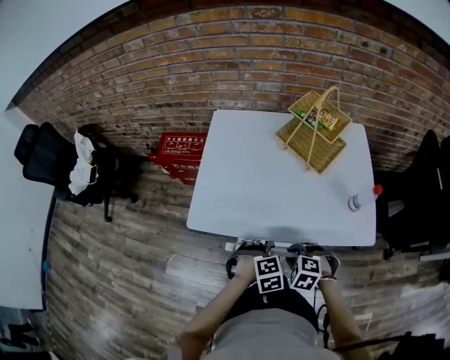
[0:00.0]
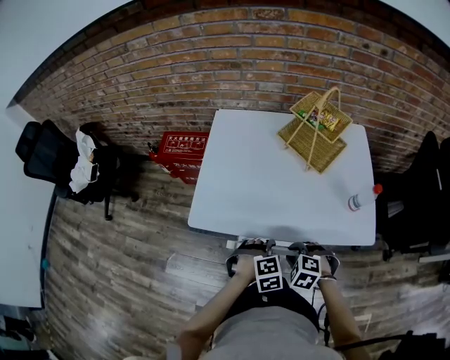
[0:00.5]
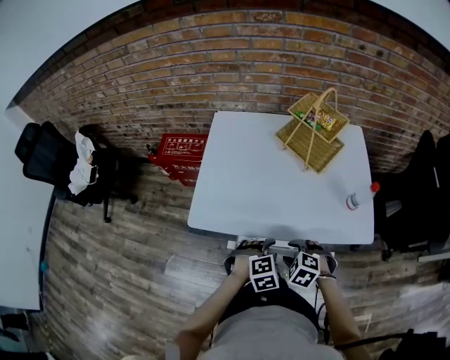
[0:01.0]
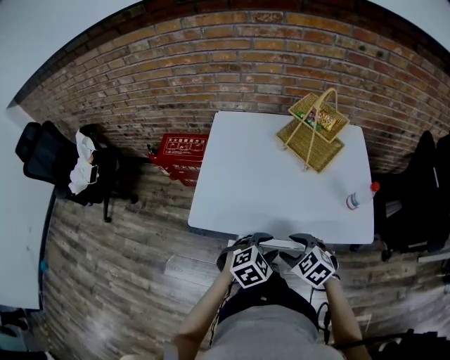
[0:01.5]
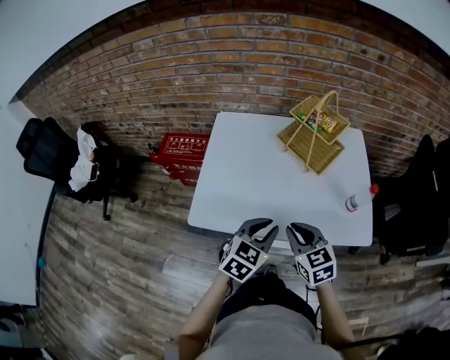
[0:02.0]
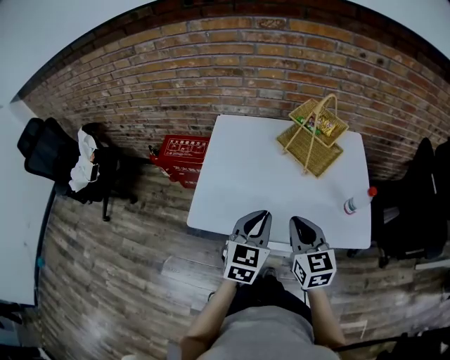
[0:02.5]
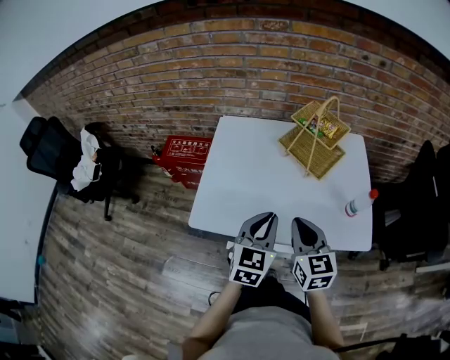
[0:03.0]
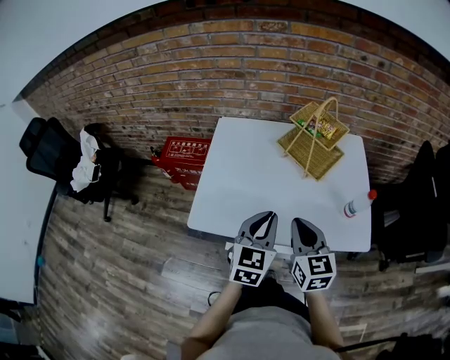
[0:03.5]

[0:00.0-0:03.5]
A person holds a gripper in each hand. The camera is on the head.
0:00.0 to 0:02.0: The two grippers go approximately 15 cm upward and forward. The right gripper tips its fingers upward by some 40 degrees, and opens and closes again; the left gripper tips its fingers upward by about 40 degrees.
0:02.0 to 0:03.5: The grippers both shift upward by about 5 cm. The left gripper rotates some 20 degrees.

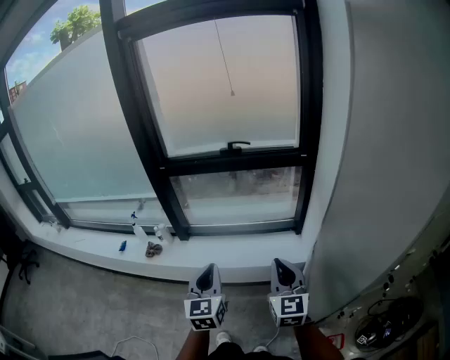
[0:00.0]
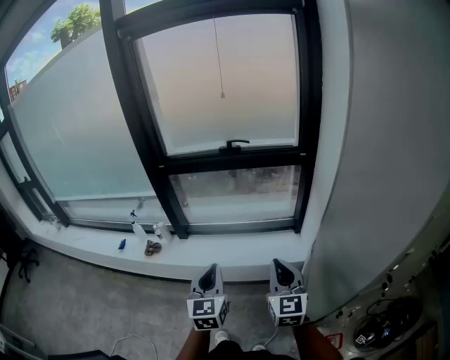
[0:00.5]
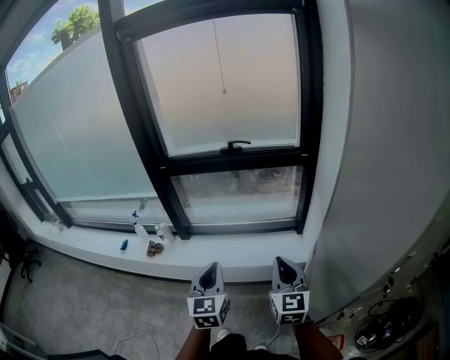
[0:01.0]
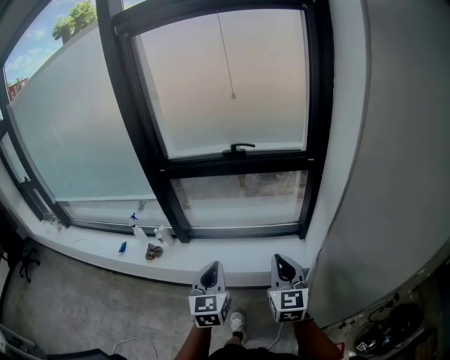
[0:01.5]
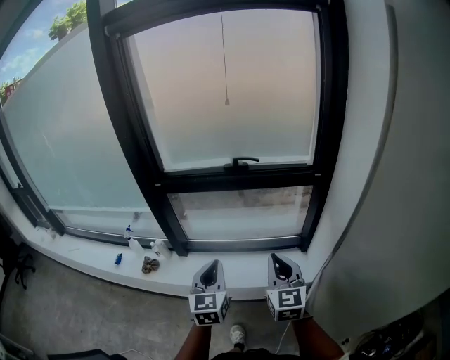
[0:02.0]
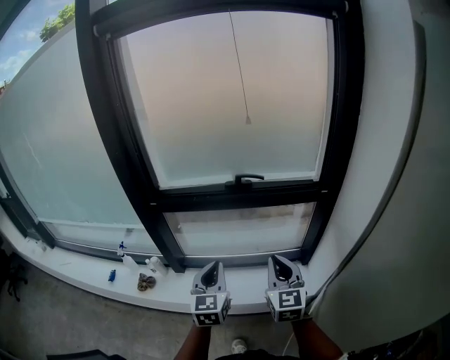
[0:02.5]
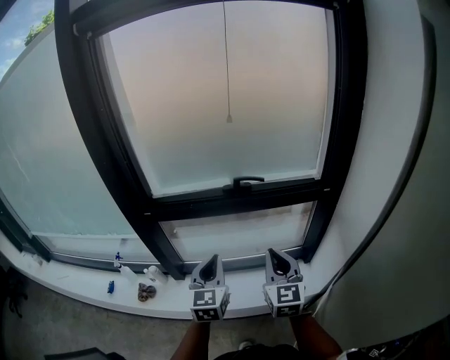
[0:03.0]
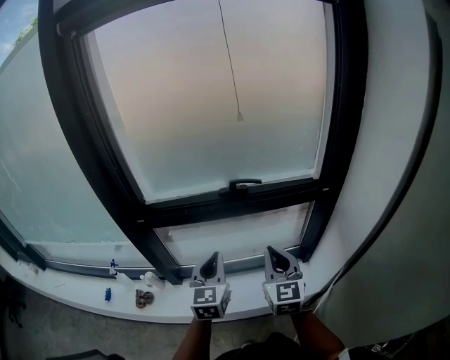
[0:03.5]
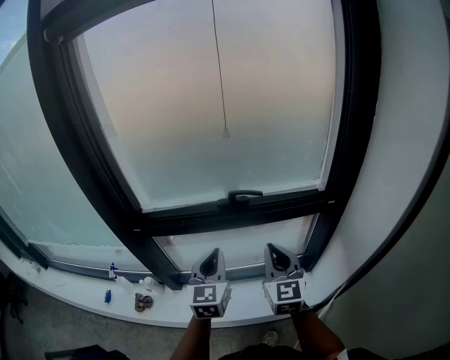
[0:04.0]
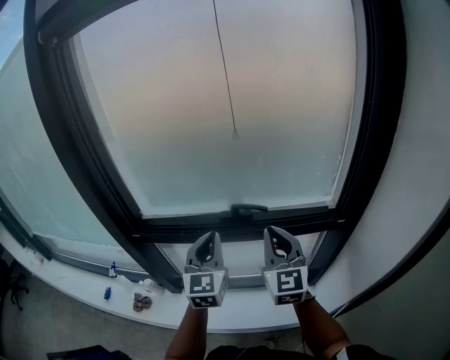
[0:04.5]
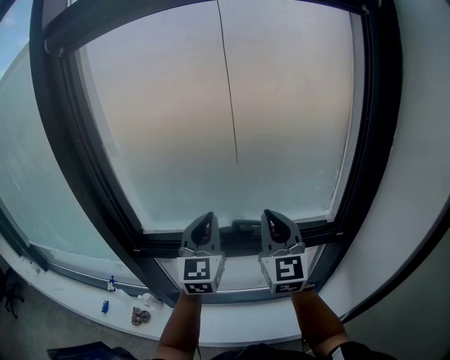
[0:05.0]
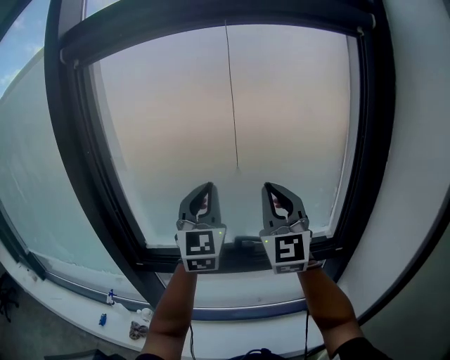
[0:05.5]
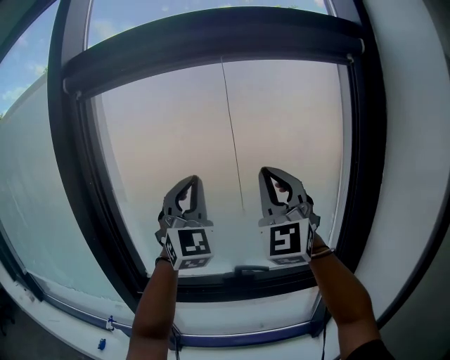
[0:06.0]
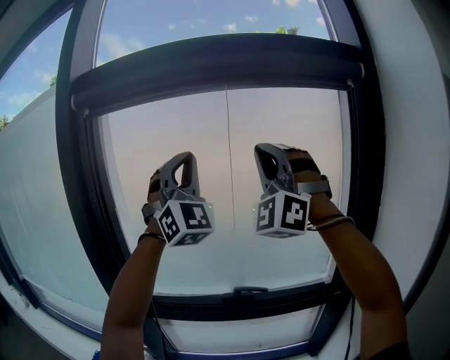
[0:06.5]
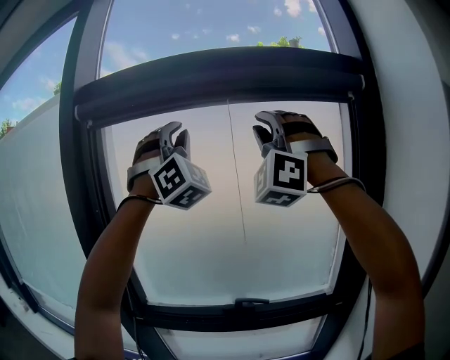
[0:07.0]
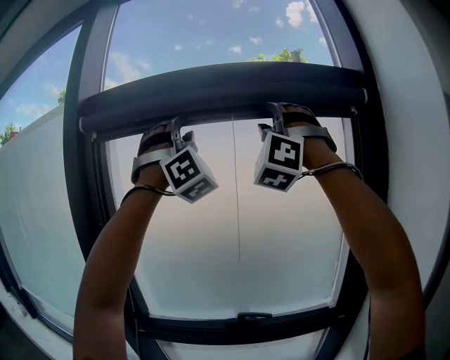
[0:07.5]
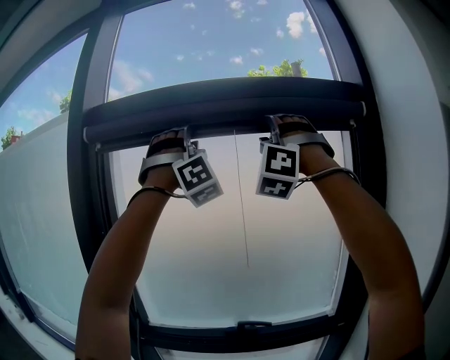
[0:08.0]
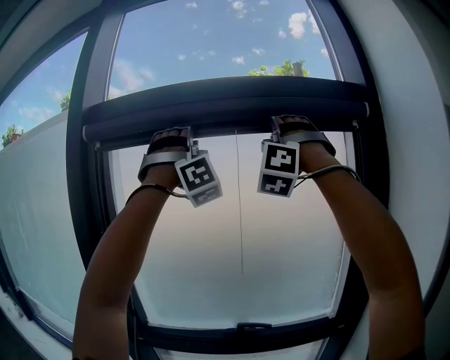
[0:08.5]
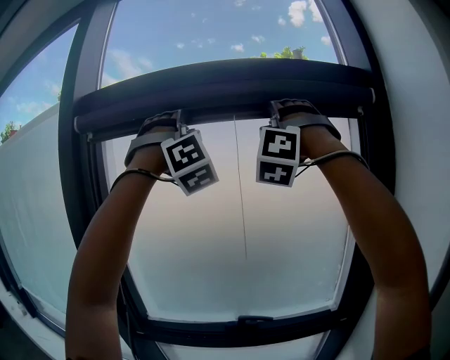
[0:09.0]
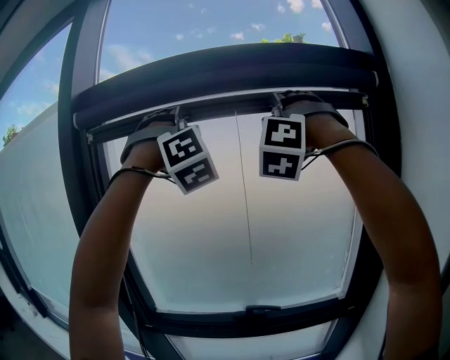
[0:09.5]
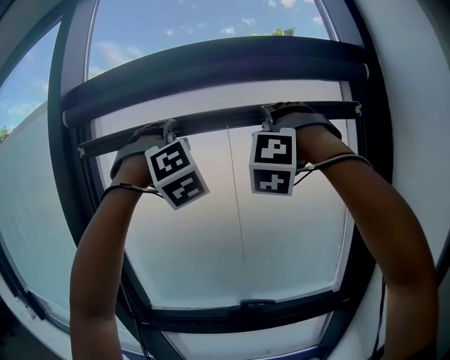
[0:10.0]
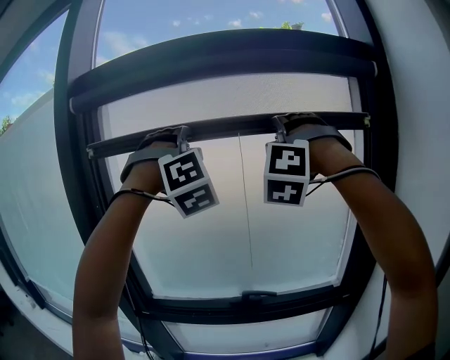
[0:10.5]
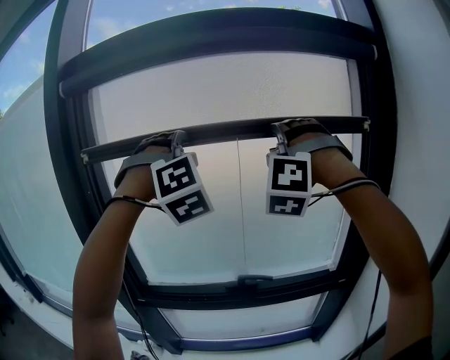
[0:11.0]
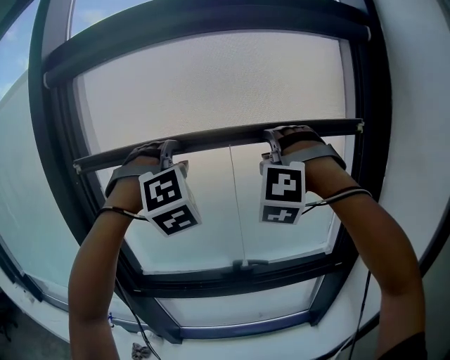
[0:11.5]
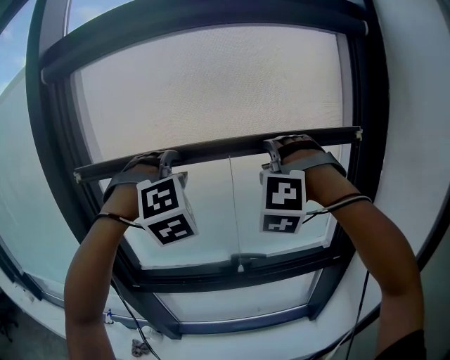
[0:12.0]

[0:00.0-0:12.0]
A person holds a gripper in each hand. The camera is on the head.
0:00.0 to 0:02.0: Both grippers move forward, approximately 15 cm.
0:02.0 to 0:04.0: Both grippers move forward, about 25 cm.
0:04.0 to 0:06.0: The grippers both shift upward by some 40 cm. The right gripper tilts its fingers roughly 30 degrees upward, while the left gripper angles its fingers upward, by about 40 degrees.
0:06.0 to 0:08.0: Both grippers travel together upward, roughly 25 cm. The right gripper twists some 60 degrees counterclockwise, seen from behind, and opens its fingers. The left gripper rolls clockwise, seen from behind, by some 50 degrees, and opens up.
0:08.0 to 0:10.0: Both grippers move downward, roughly 10 cm. The left gripper turns by some 20 degrees.
0:10.0 to 0:12.0: The grippers both shift downward by about 20 cm. The left gripper changes its angle by about 20 degrees.

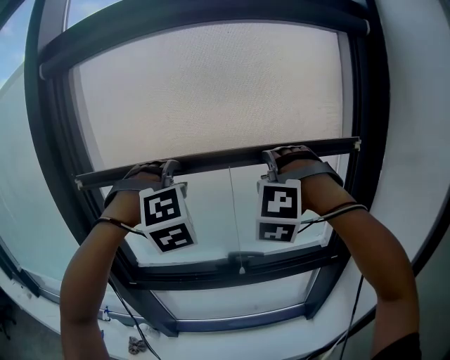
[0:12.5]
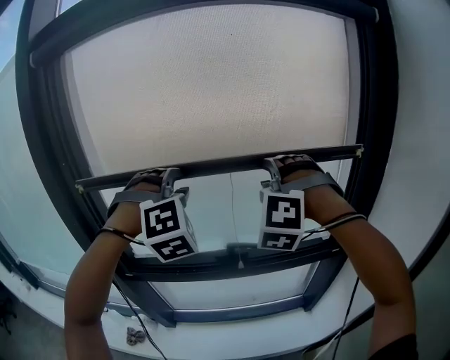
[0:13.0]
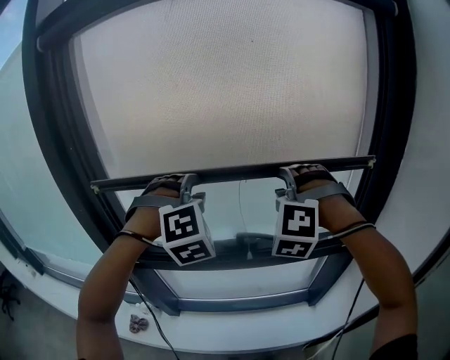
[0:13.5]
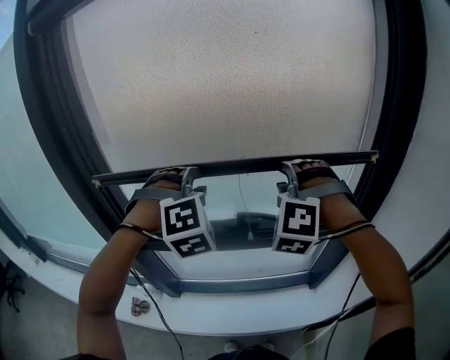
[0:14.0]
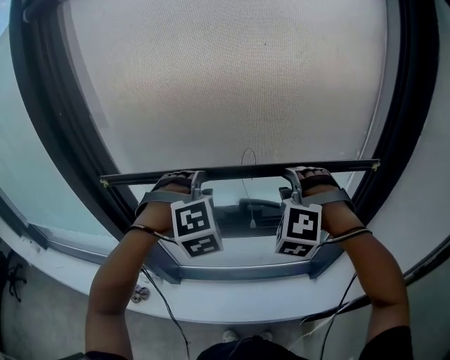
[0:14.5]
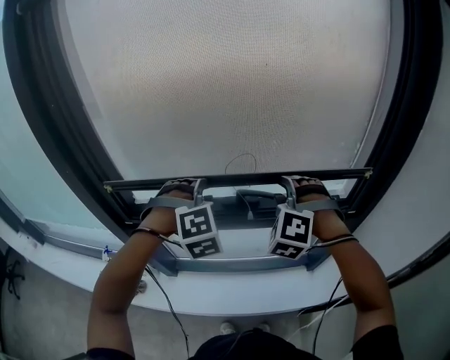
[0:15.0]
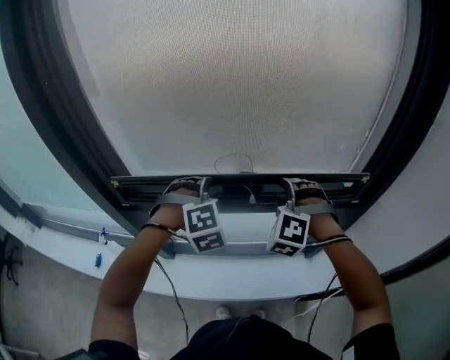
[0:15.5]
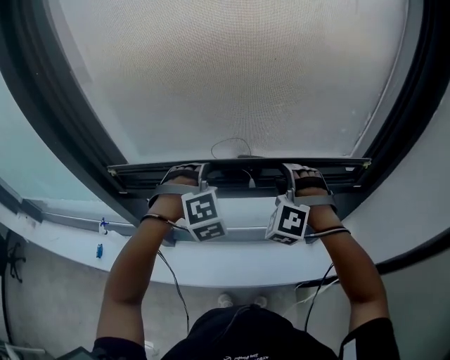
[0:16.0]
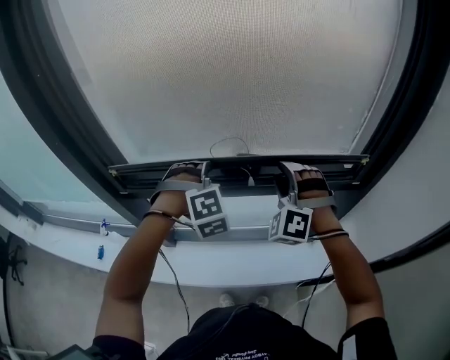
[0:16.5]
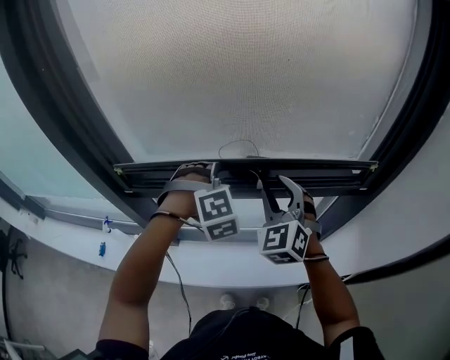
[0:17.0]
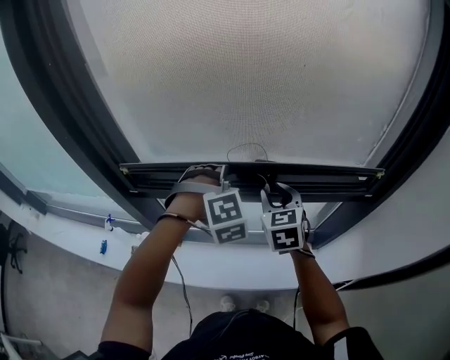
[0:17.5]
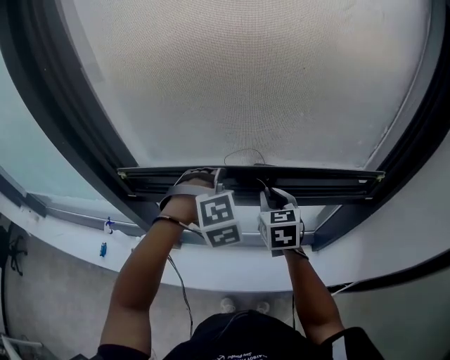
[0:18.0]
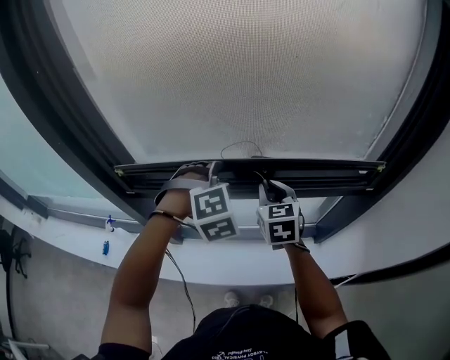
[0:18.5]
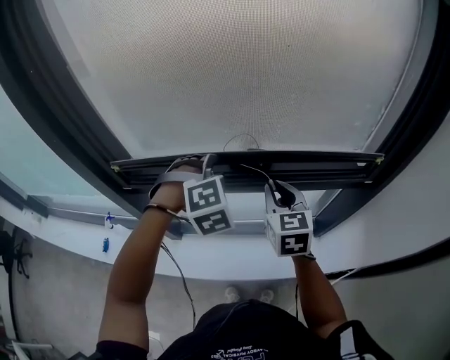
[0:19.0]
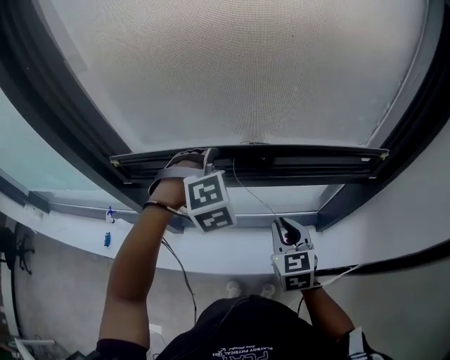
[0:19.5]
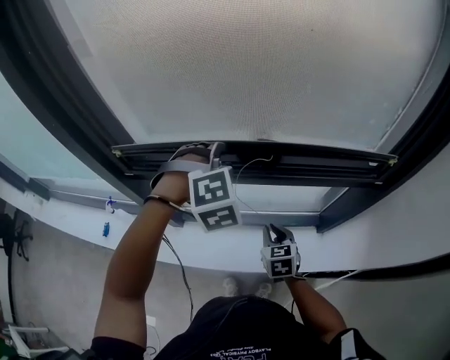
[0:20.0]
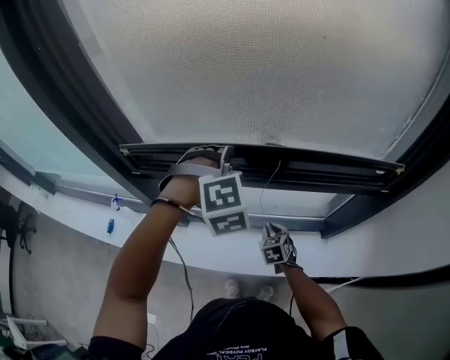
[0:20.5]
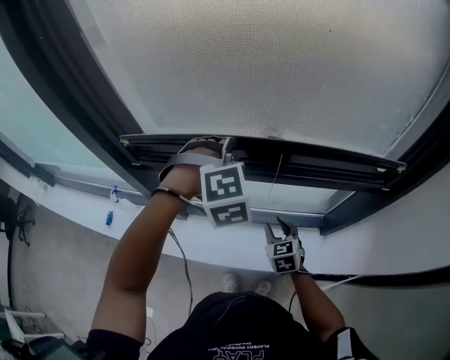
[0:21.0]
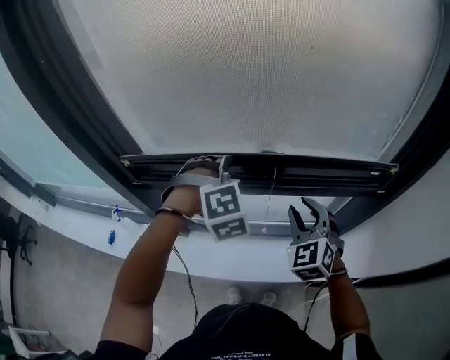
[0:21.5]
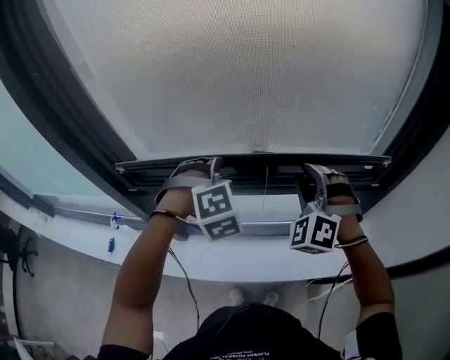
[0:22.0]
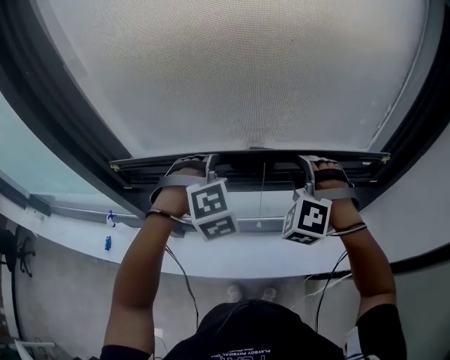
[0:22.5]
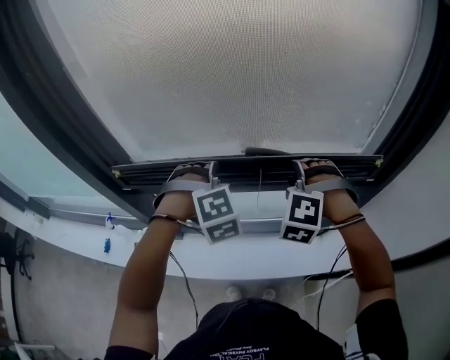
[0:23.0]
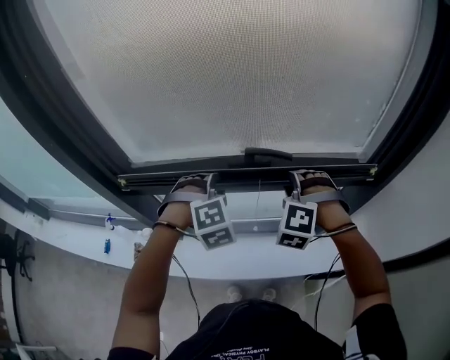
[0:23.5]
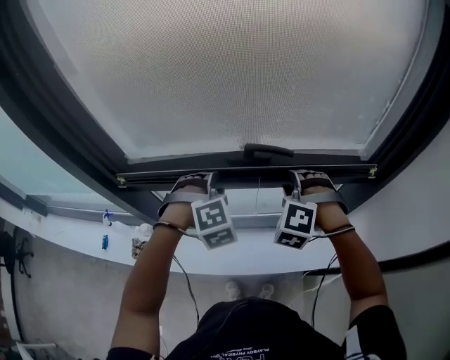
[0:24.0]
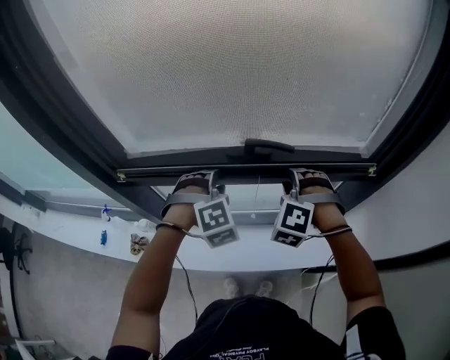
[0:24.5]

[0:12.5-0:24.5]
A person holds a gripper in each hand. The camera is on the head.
0:12.5 to 0:14.5: The grippers both shift downward by some 15 cm.
0:14.5 to 0:16.5: Both grippers move downward, about 15 cm.
0:16.5 to 0:18.5: The right gripper moves downward and to the left, approximately 10 cm, rotates around the line of its fingers by some 70 degrees, clockwise from behind, and closes.
0:18.5 to 0:20.5: The right gripper is displaced downward by some 25 cm, and rotates about 20 degrees.
0:20.5 to 0:22.5: The right gripper shifts about 30 cm upward, and twists some 60 degrees counterclockwise, seen from behind.
0:22.5 to 0:24.5: The grippers both shift downward by some 10 cm.
